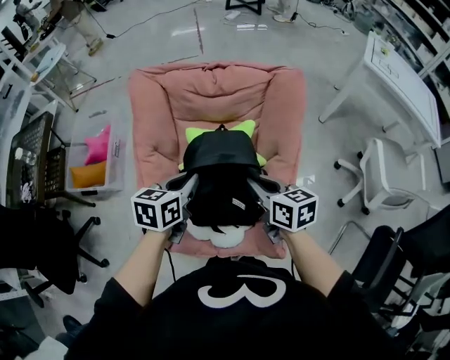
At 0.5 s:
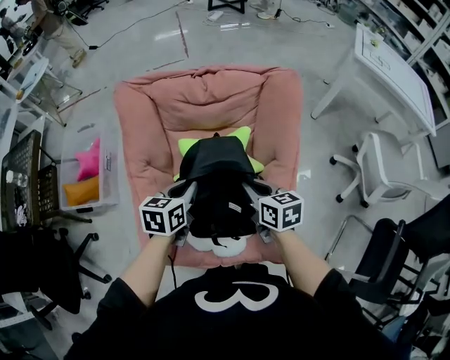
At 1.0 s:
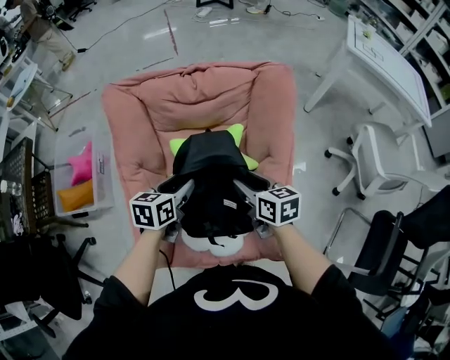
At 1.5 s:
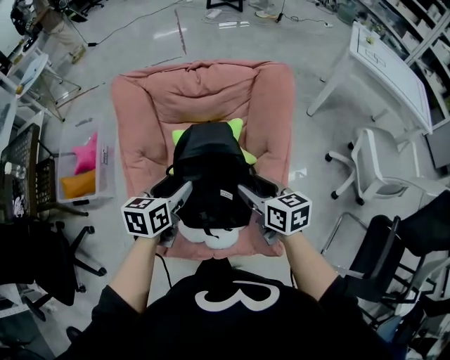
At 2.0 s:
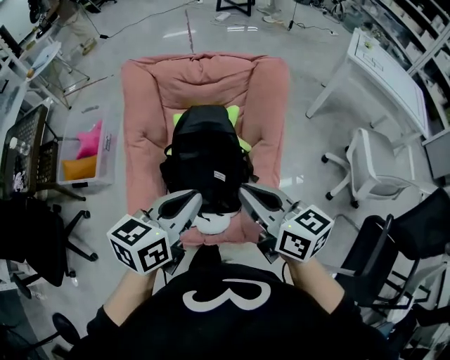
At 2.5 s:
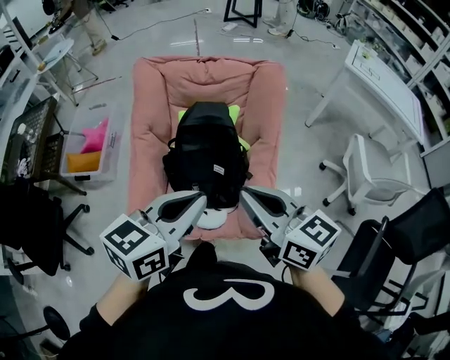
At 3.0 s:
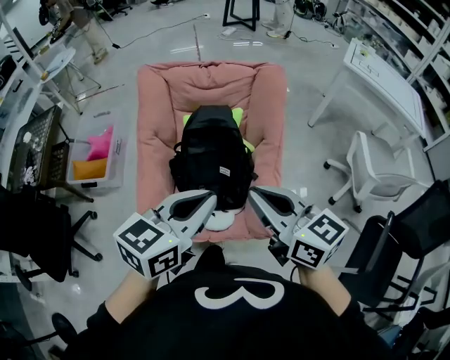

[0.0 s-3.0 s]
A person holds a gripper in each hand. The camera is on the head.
0.0 to 1.5 s: The right gripper opens up, while the left gripper opens up.
1.5 to 3.0 s: The right gripper heads upward and backward, covering roughly 30 cm, turns by approximately 30 degrees, and closes up. Meanwhile the left gripper moves backward, upward and to the right, approximately 30 cm, turns by roughly 20 degrees, and closes.

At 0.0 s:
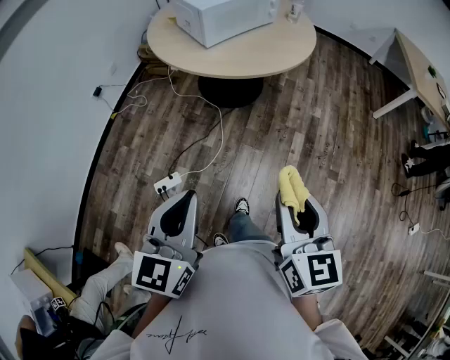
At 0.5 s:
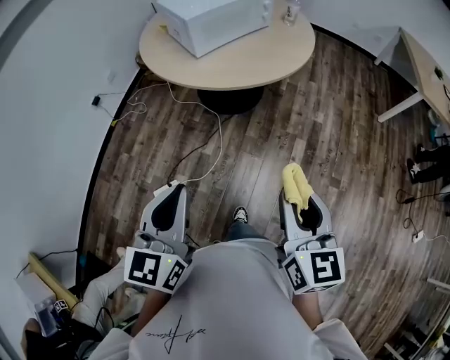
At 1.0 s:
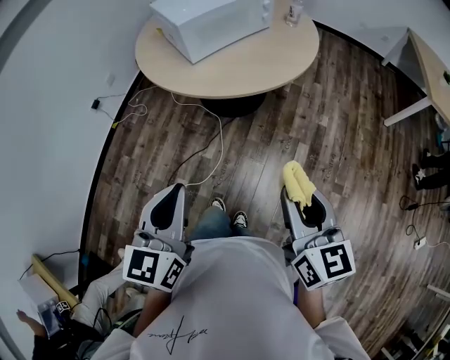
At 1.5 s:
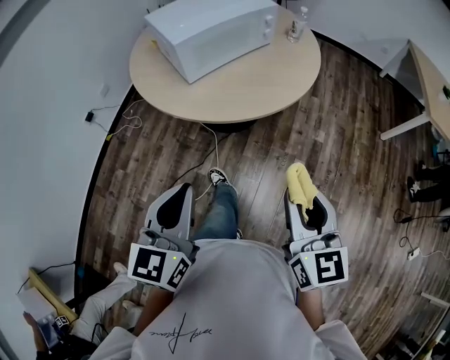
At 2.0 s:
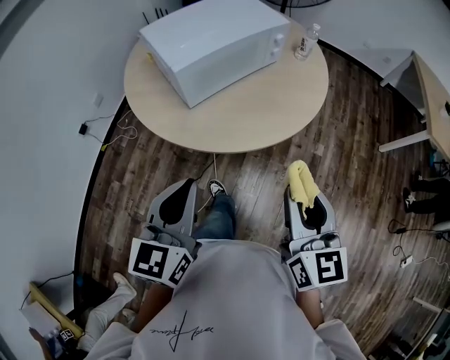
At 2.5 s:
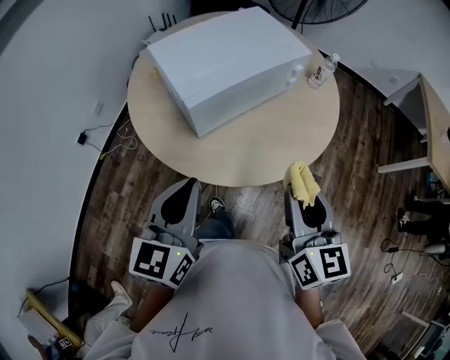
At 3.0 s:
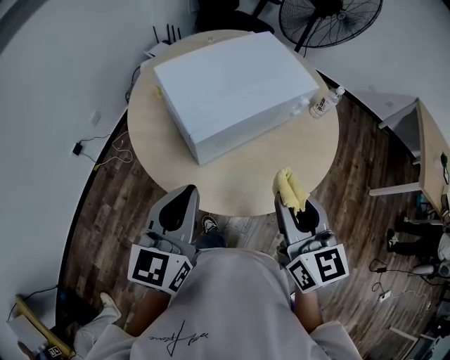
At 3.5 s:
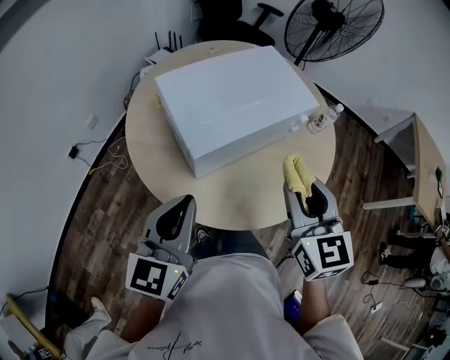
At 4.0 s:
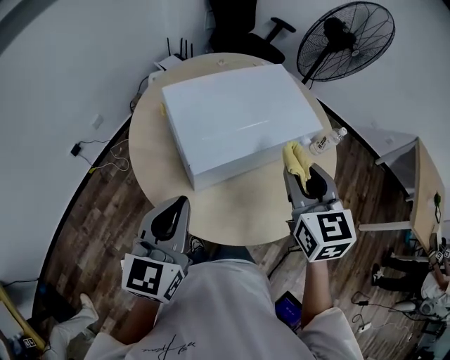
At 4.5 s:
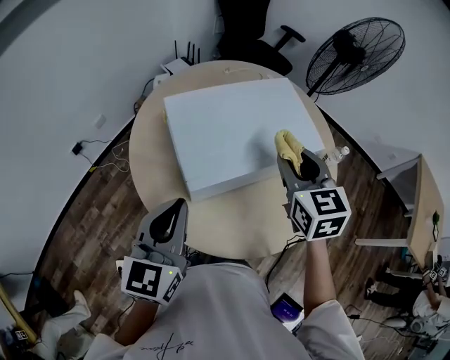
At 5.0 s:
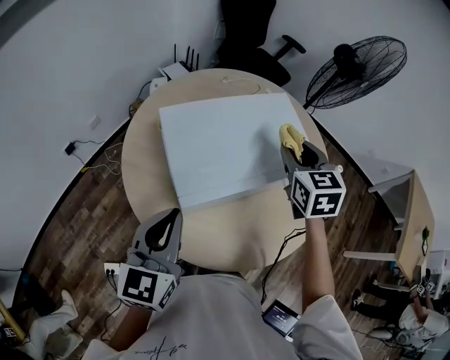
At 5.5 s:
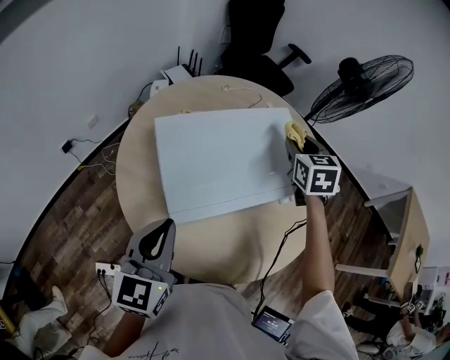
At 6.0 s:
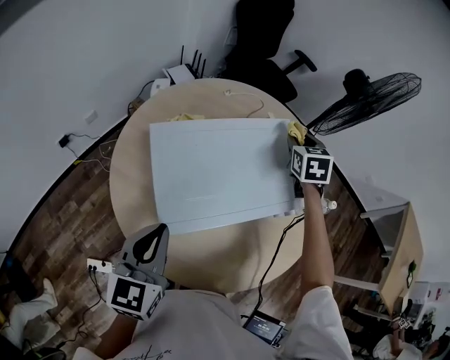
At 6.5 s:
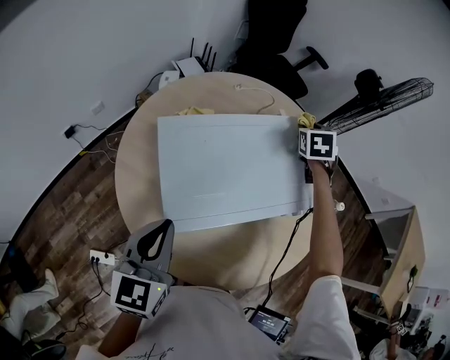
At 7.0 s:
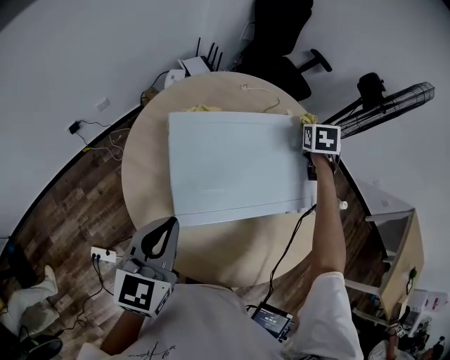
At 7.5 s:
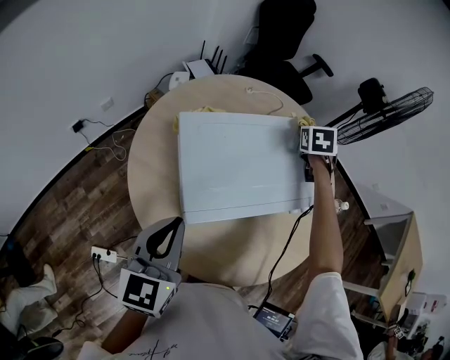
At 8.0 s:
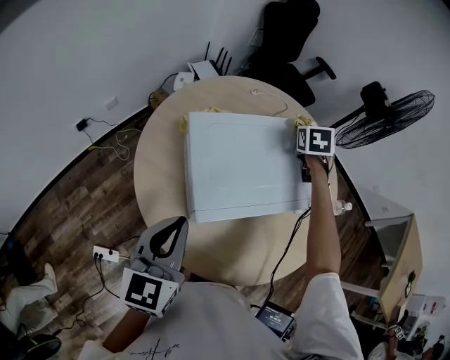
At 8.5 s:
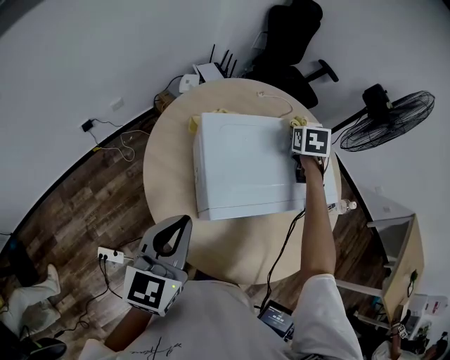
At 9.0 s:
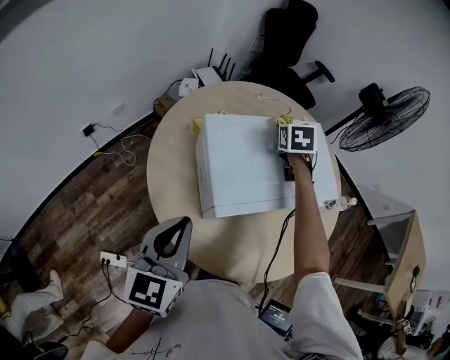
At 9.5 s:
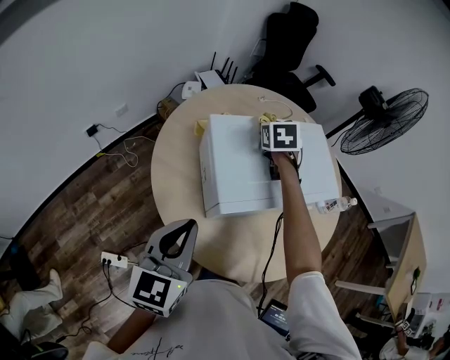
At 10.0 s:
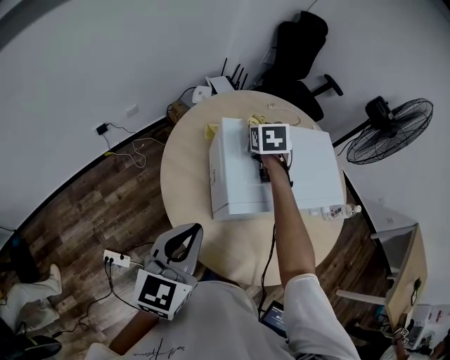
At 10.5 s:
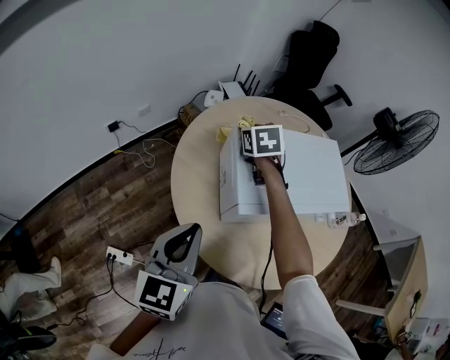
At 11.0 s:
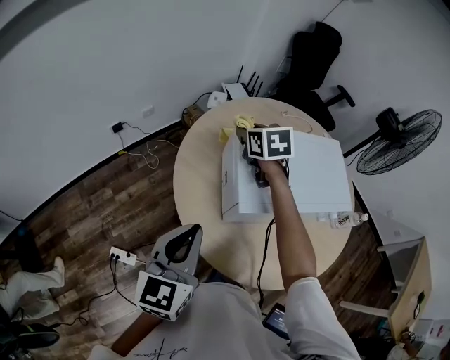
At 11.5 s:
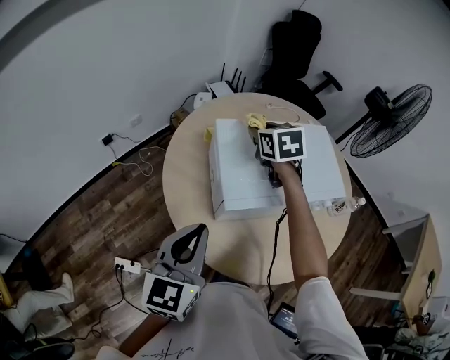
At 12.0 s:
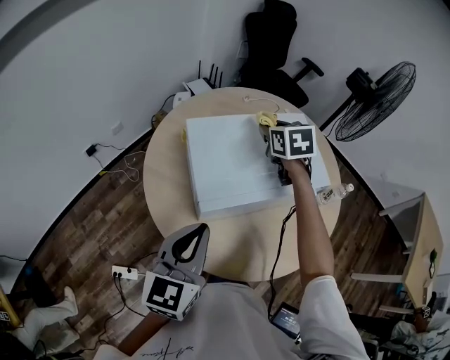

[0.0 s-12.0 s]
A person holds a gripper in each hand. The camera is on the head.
0.0 to 2.0 s: The two grippers travel together, forward, some 40 cm.
2.0 to 4.0 s: The left gripper heads forward, covering about 25 cm. Meanwhile the right gripper is displaced forward by approximately 35 cm, and changes its angle by approximately 20 degrees.
4.0 to 6.0 s: The left gripper is displaced forward by approximately 10 cm. The right gripper goes approximately 35 cm forward.
6.0 to 8.0 s: The right gripper moves to the left, approximately 10 cm; the left gripper ends up about 5 cm from where it was.
8.0 to 10.0 s: The left gripper heads backward, covering roughly 5 cm; the right gripper moves to the left and backward, about 25 cm.
10.0 to 12.0 s: Both grippers move to the right, roughly 10 cm.

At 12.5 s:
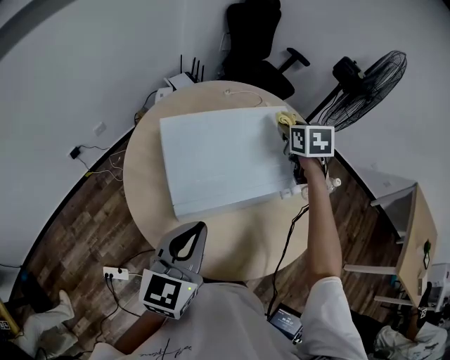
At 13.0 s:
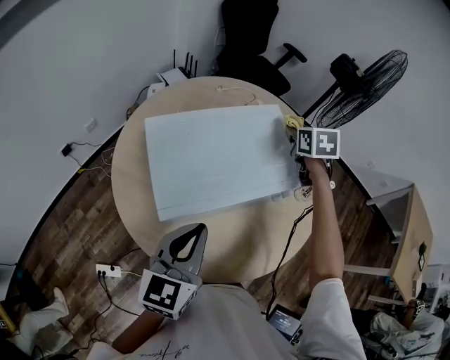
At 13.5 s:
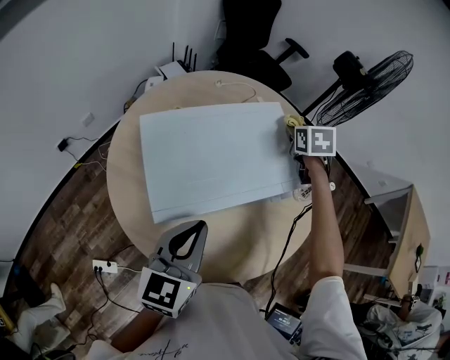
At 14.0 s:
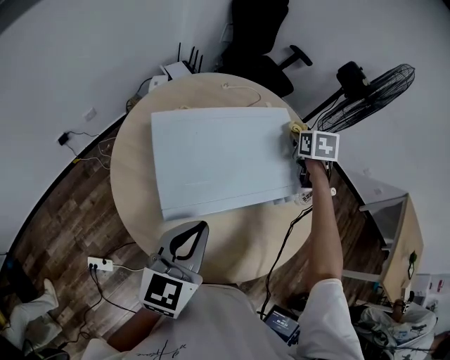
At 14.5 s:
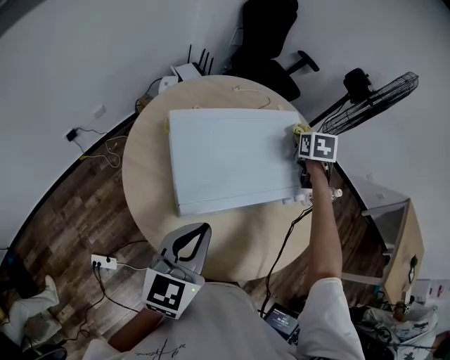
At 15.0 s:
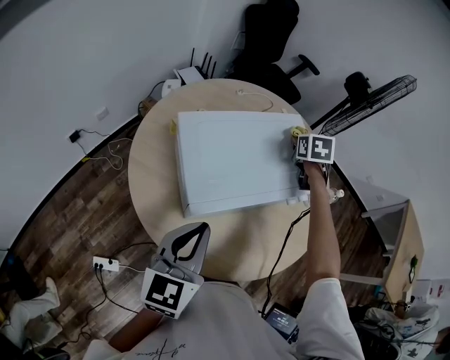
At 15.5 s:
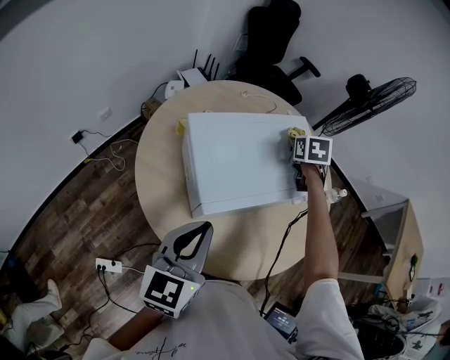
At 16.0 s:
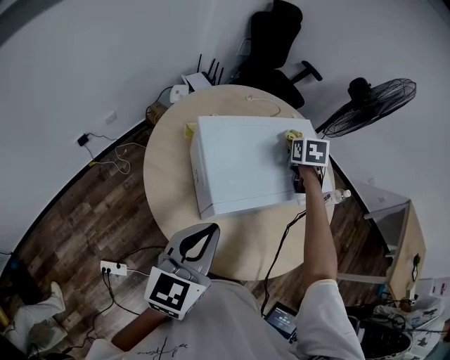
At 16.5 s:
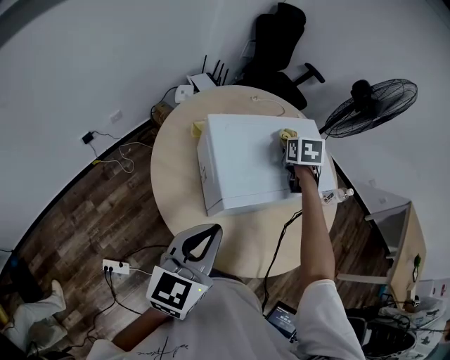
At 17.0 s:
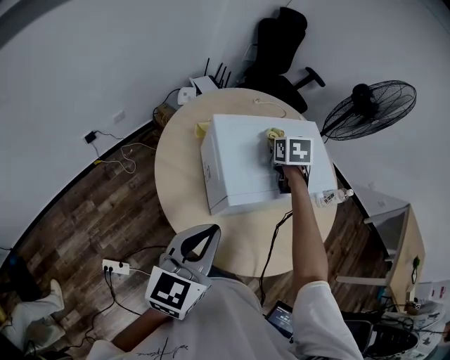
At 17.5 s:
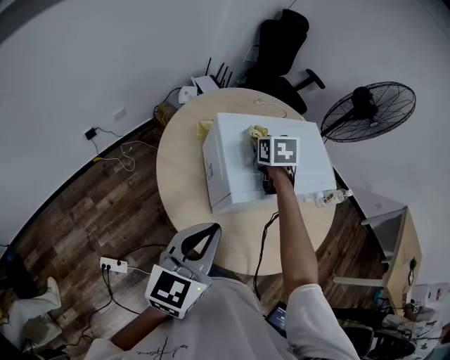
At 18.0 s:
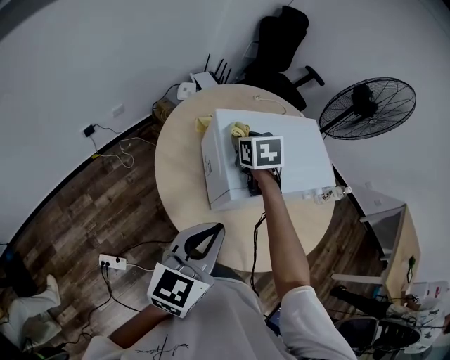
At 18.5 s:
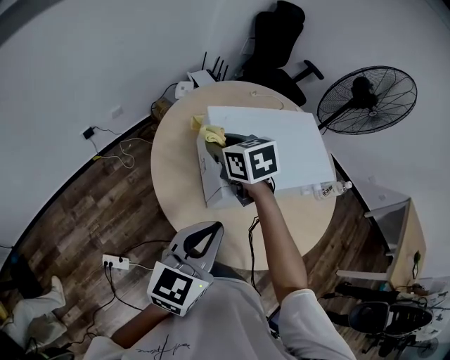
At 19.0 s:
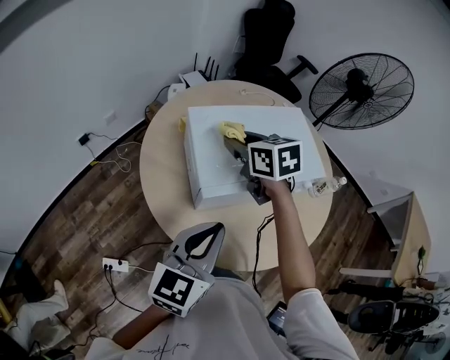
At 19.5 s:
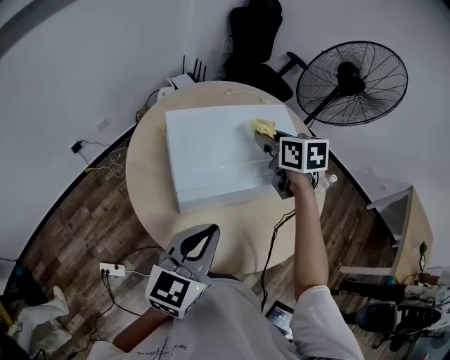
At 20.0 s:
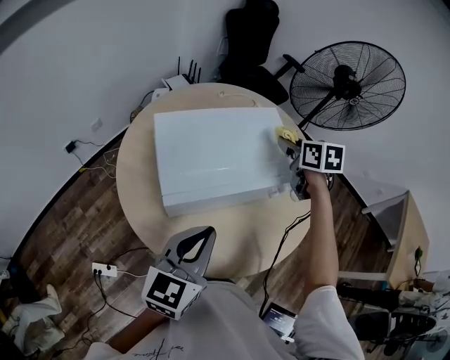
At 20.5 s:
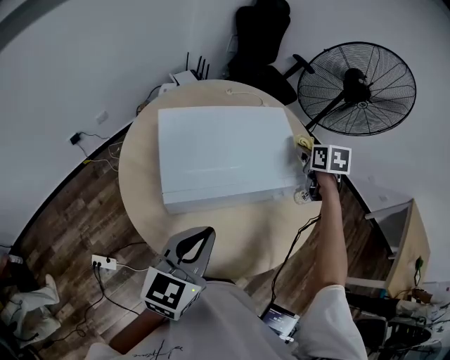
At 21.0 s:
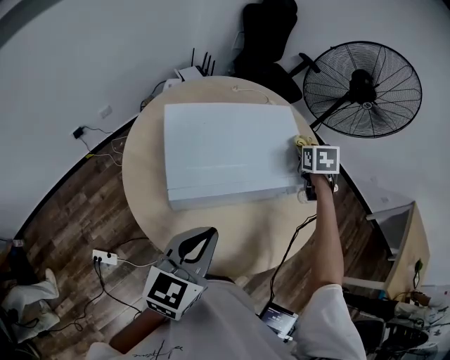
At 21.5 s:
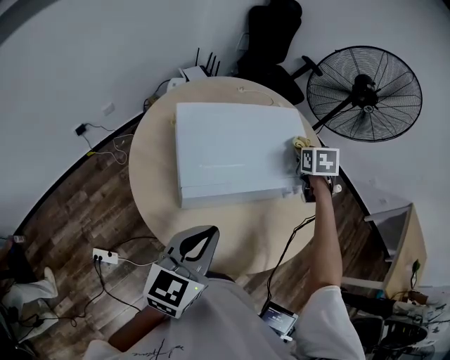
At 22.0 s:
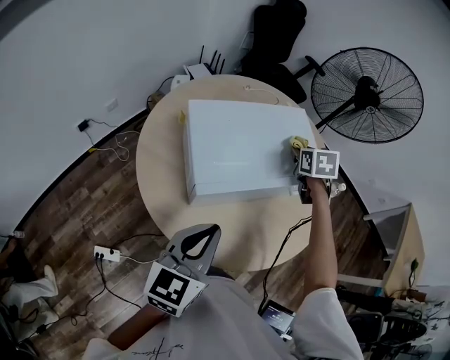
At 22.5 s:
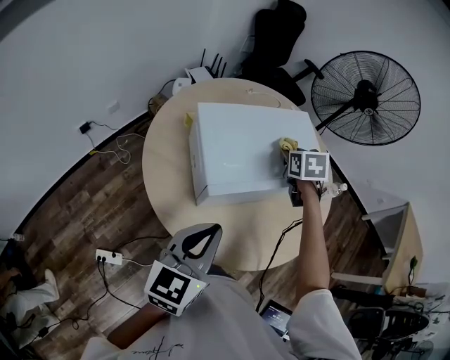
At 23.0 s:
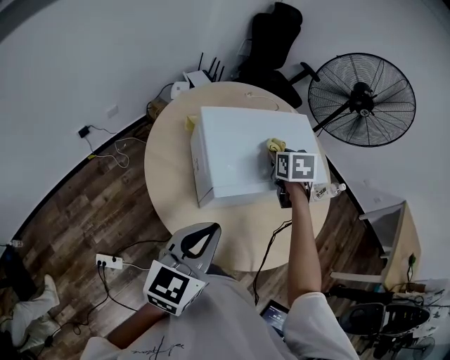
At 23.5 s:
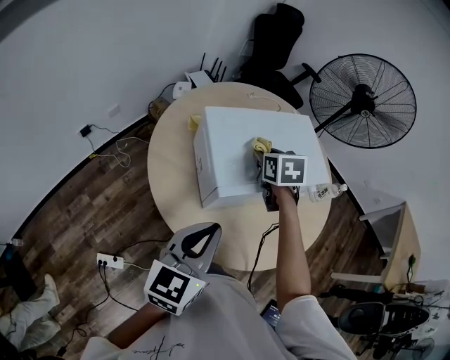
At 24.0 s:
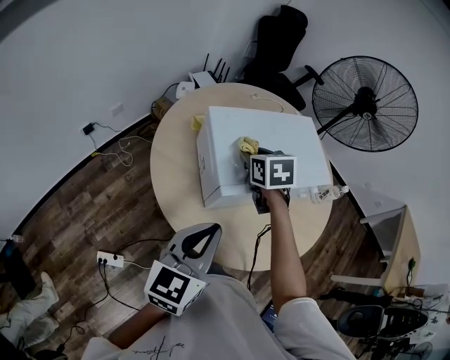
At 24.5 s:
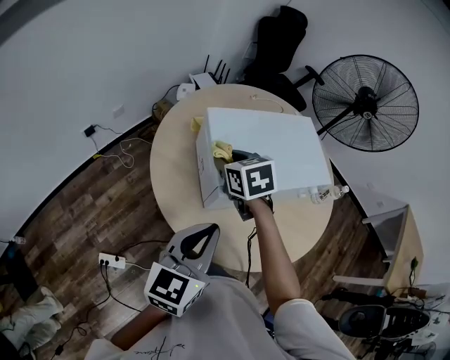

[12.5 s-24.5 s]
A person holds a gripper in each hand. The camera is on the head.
12.5 to 14.5 s: The right gripper goes approximately 5 cm downward.
14.5 to 16.5 s: The left gripper shifts some 10 cm to the left and backward. The right gripper shifts approximately 15 cm to the left and backward.
16.5 to 18.5 s: The right gripper shifts about 25 cm to the left and backward, and swivels roughly 30 degrees.
18.5 to 20.5 s: The right gripper shifts about 50 cm to the right, and swivels approximately 30 degrees. The left gripper is displaced to the right by some 15 cm.
20.5 to 22.5 s: The left gripper goes some 10 cm to the left and backward. The right gripper is displaced to the left and backward by about 20 cm.
22.5 to 24.5 s: The right gripper is displaced to the left and backward by approximately 25 cm, and turns by approximately 20 degrees.
